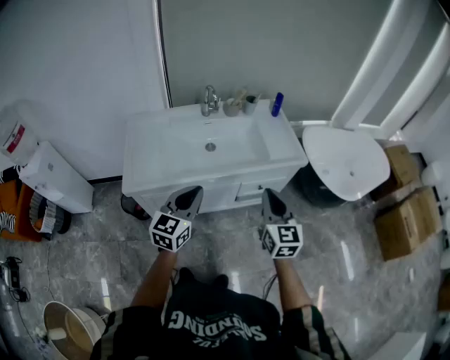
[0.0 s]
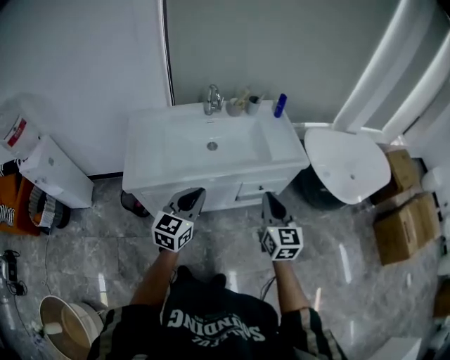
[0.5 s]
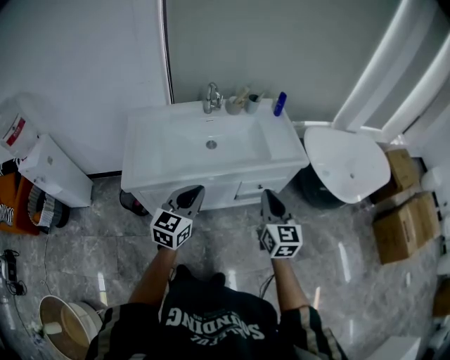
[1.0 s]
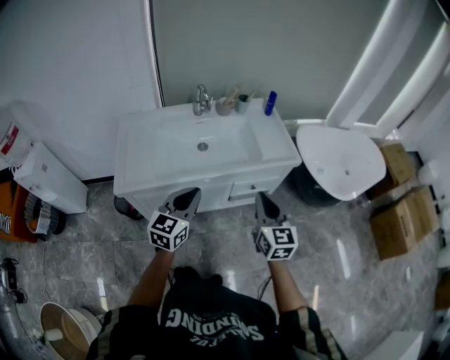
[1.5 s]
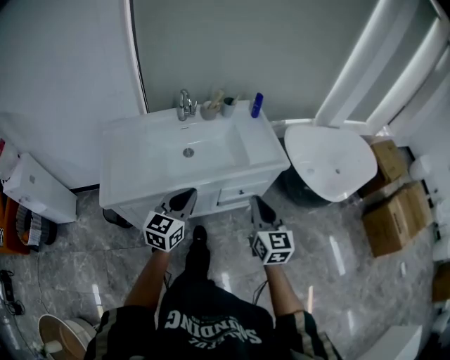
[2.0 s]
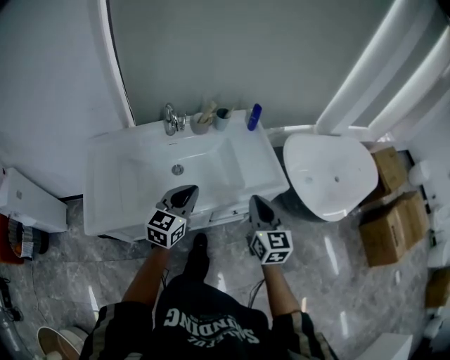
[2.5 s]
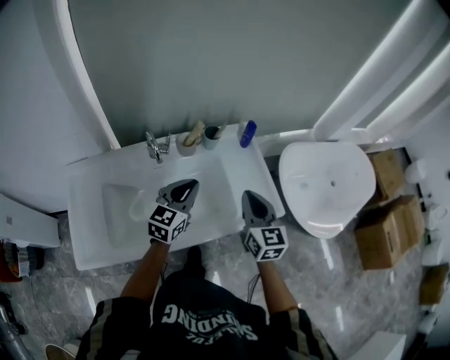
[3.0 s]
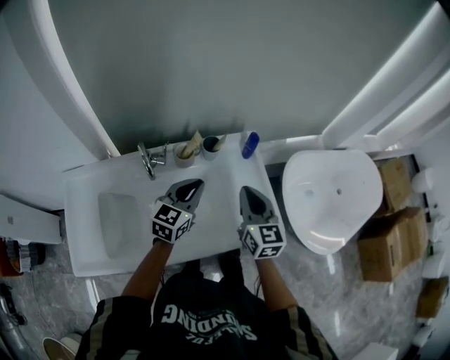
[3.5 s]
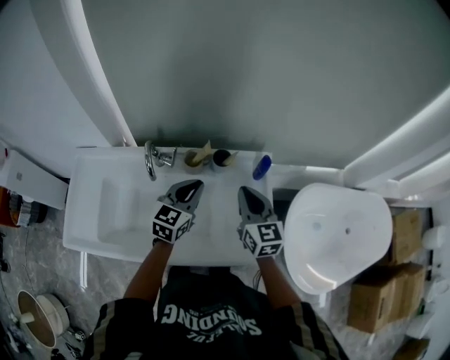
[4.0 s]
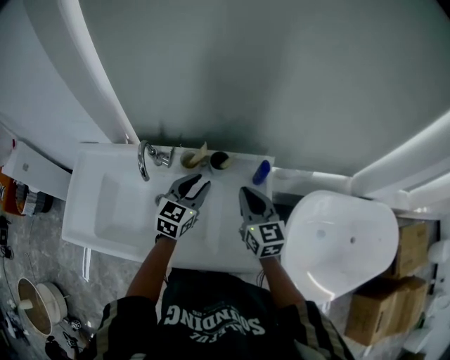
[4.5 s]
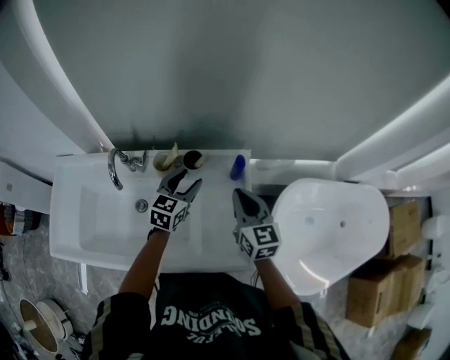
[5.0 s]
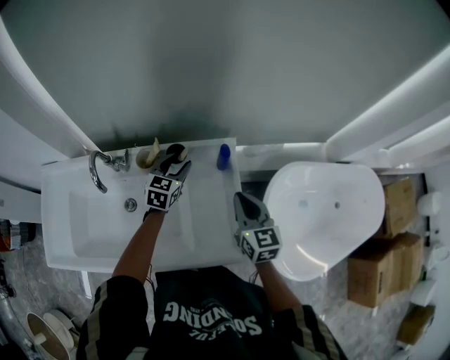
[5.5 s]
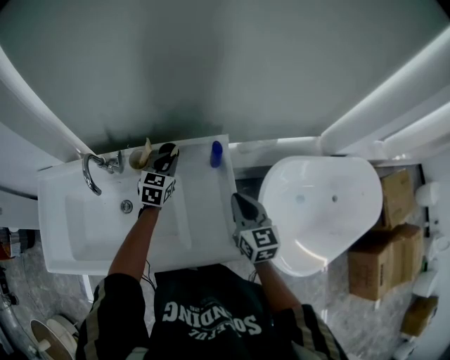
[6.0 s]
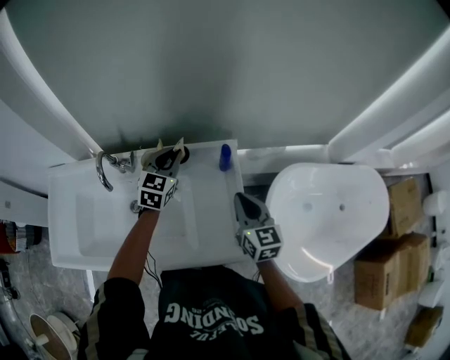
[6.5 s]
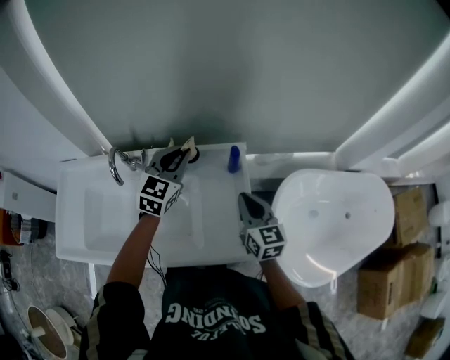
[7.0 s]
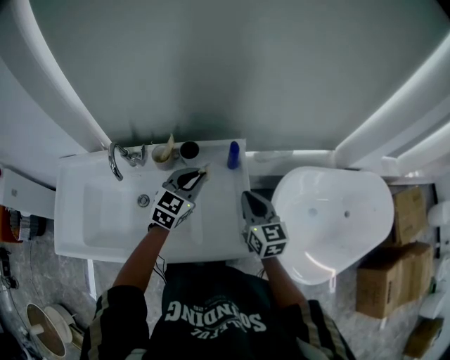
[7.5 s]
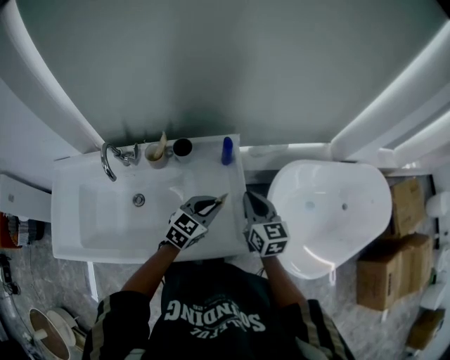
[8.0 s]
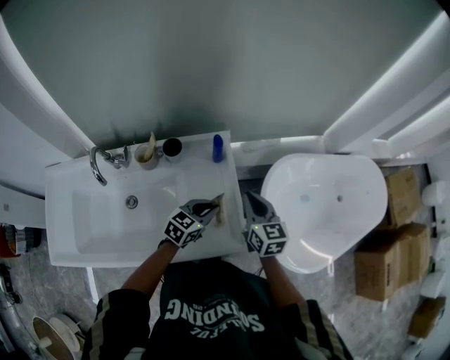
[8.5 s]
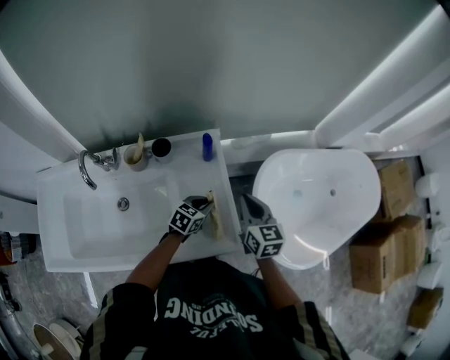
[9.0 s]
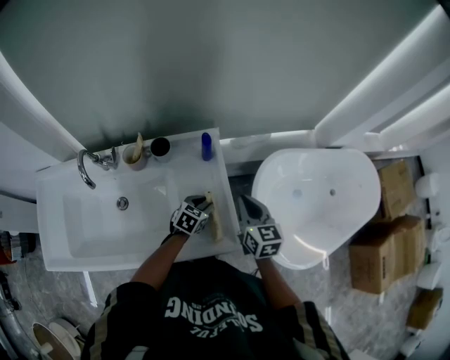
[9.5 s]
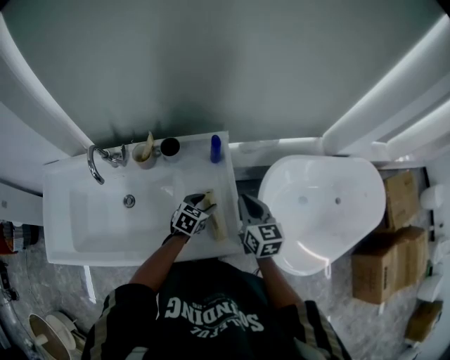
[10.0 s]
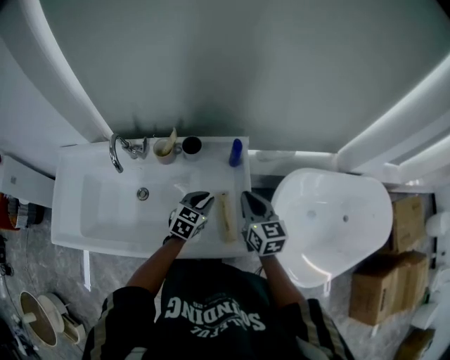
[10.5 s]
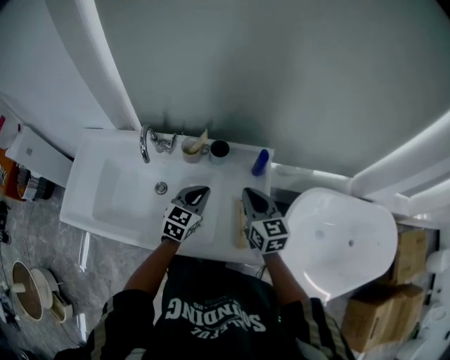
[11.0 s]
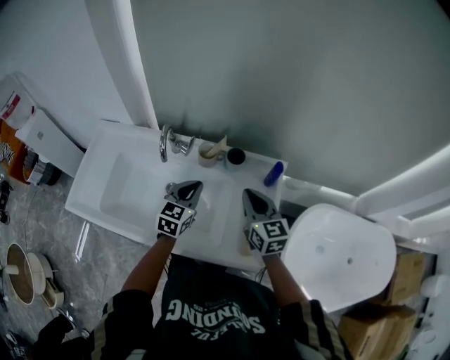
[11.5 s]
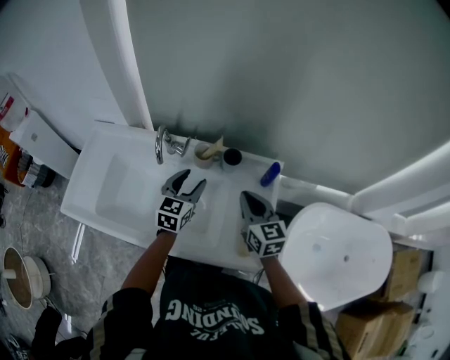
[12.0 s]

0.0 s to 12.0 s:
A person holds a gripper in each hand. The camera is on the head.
0.0 to 2.0 s: The right gripper shifts by approximately 5 cm. Meanwhile the left gripper goes about 10 cm forward and to the right.
2.0 to 4.0 s: Both grippers are carried forward, approximately 50 cm. The right gripper rotates approximately 20 degrees.
4.0 to 6.0 s: The right gripper is displaced to the right and downward by some 15 cm; the left gripper shifts approximately 20 cm forward, downward and to the right, and opens, then closes once more.
6.0 to 8.0 s: The left gripper travels backward and to the right by roughly 25 cm, and rotates some 30 degrees.
8.0 to 10.0 s: The left gripper heads downward, covering about 15 cm, swivels approximately 20 degrees, and opens its fingers.
10.0 to 12.0 s: The right gripper ends up about 20 cm from where it was, and rotates about 30 degrees. The left gripper ends up roughly 30 cm from where it was, changes its angle by some 40 degrees, and closes, then opens again.

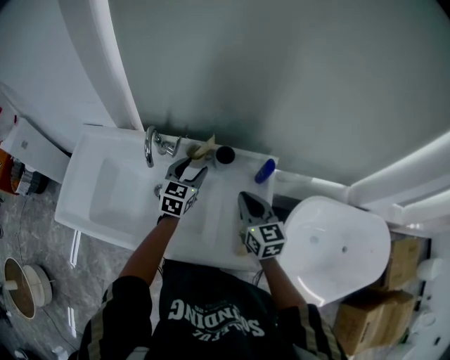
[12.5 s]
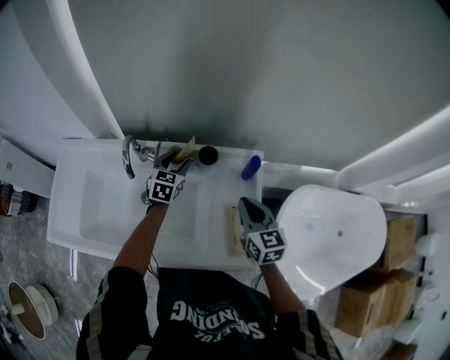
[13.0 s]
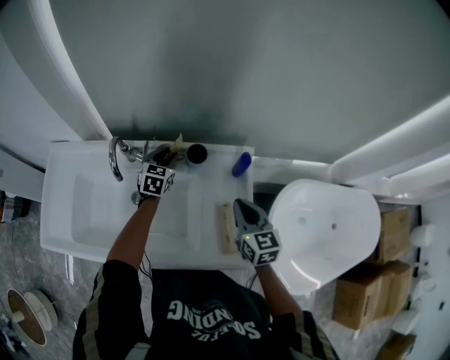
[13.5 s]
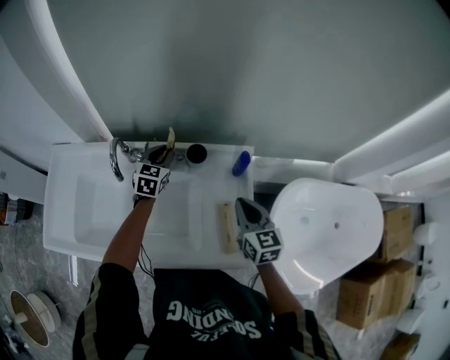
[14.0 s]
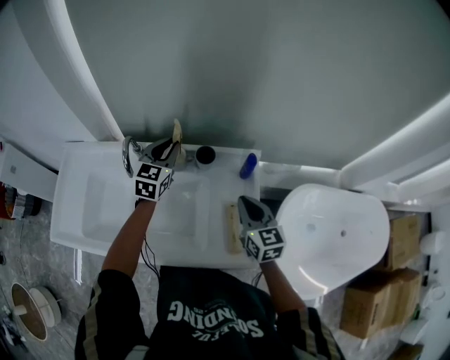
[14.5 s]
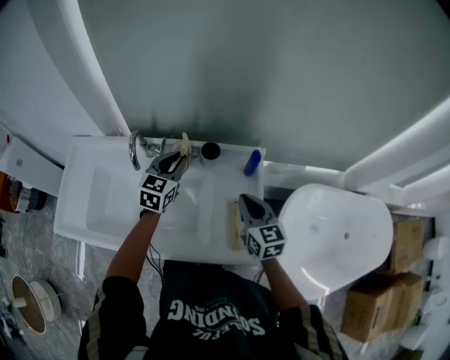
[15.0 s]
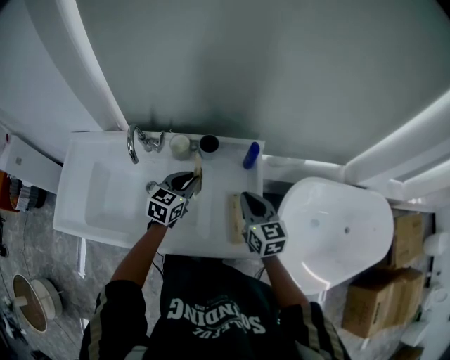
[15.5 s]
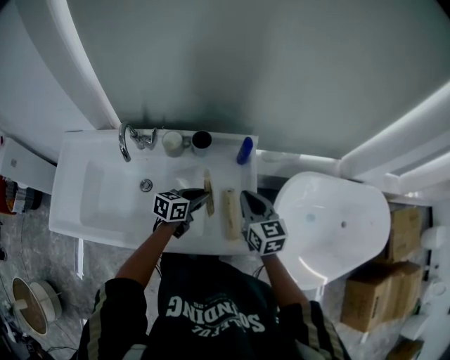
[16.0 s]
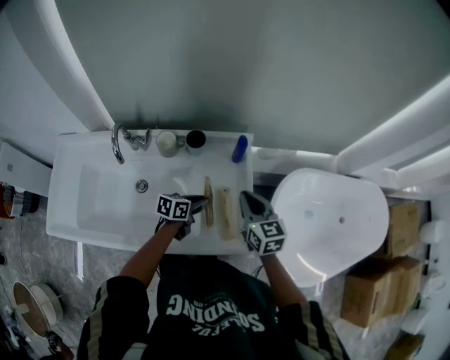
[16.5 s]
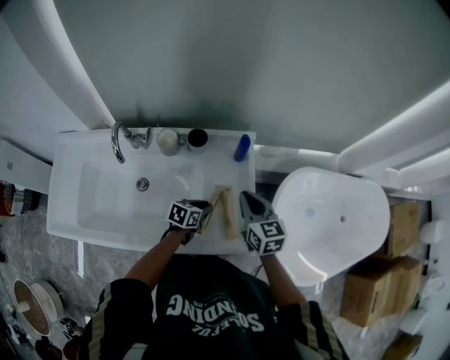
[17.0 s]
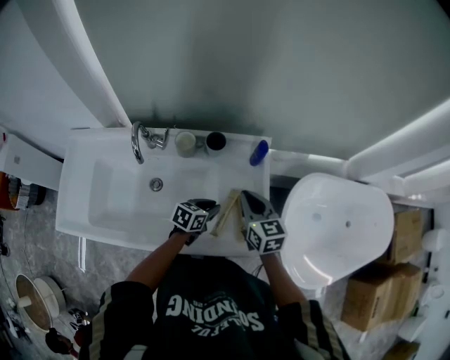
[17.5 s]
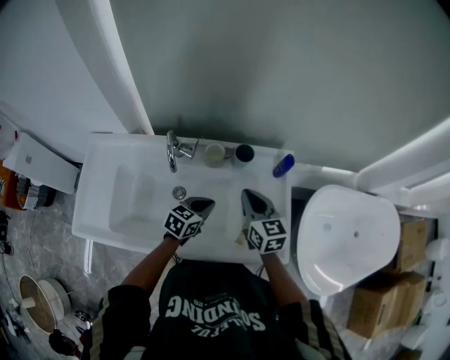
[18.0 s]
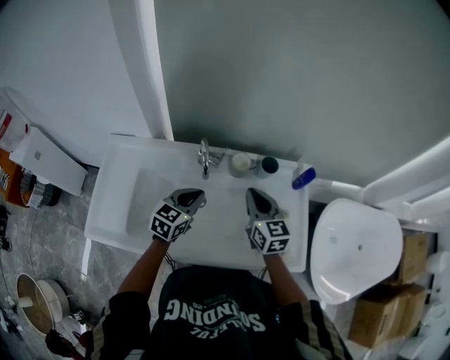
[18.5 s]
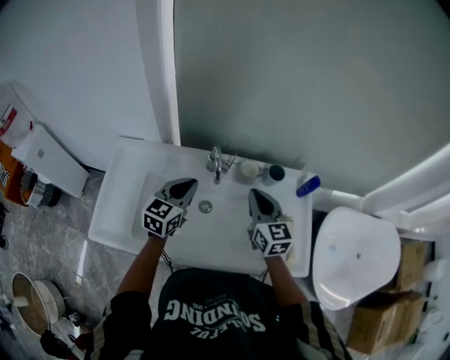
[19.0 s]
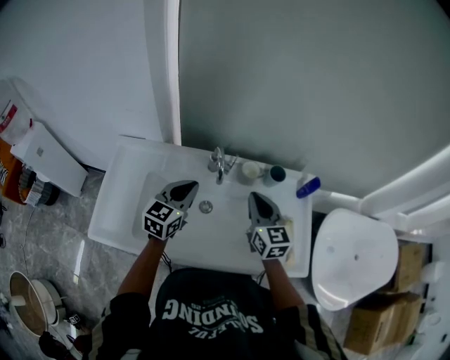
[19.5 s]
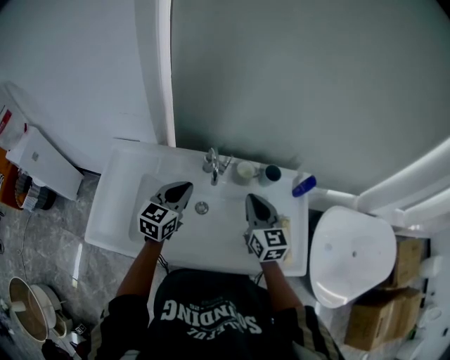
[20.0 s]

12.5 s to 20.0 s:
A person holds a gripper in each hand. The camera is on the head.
12.5 to 14.5 s: The right gripper moves to the right, some 5 cm, while the left gripper travels upward and forward by some 10 cm, and closes up.
14.5 to 16.5 s: The left gripper moves downward, to the right and backward, about 30 cm, and turns by roughly 60 degrees. The right gripper changes place by some 5 cm.
16.5 to 18.0 s: The left gripper shifts about 15 cm to the left and upward, and swivels about 20 degrees. Meanwhile the right gripper goes some 15 cm to the left.
18.0 to 20.0 s: The right gripper moves to the left, about 10 cm. Meanwhile the left gripper travels to the left and upward by about 25 cm, and rotates some 30 degrees.

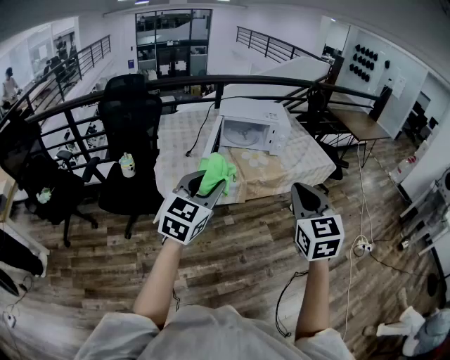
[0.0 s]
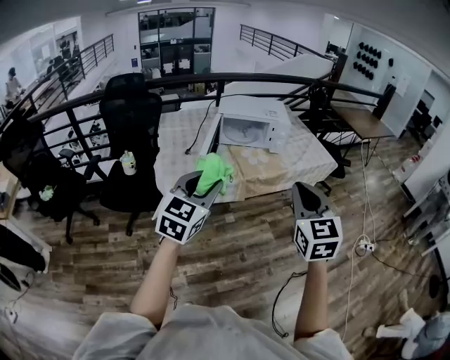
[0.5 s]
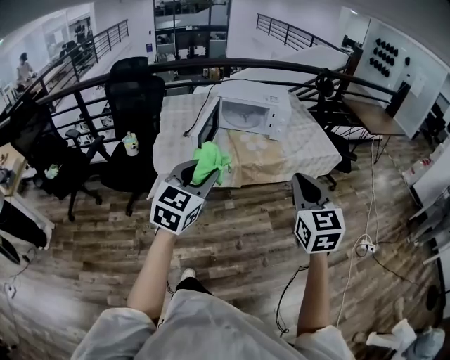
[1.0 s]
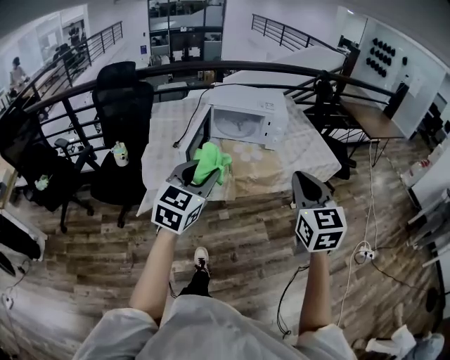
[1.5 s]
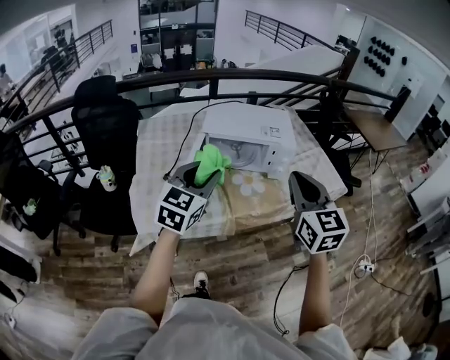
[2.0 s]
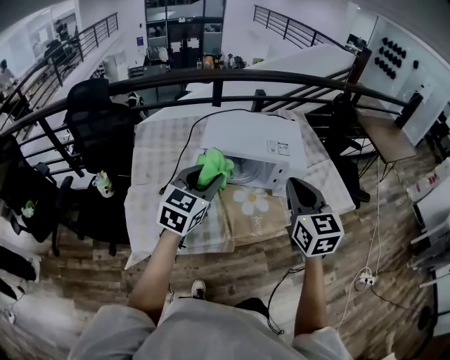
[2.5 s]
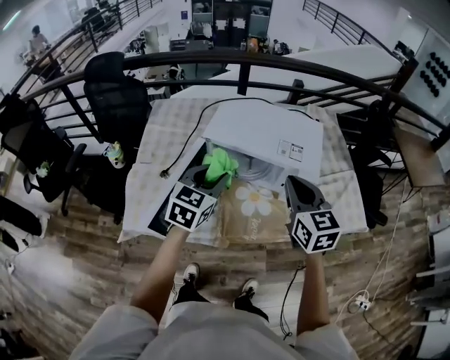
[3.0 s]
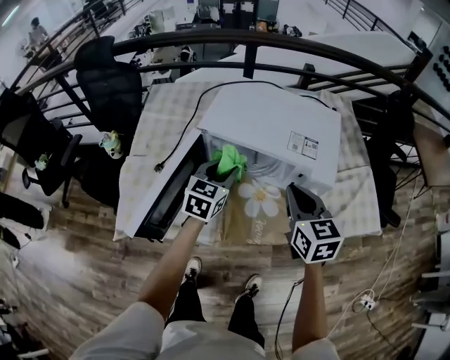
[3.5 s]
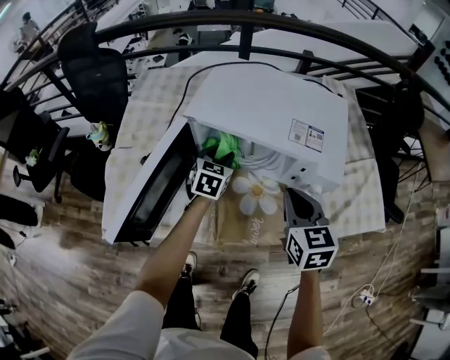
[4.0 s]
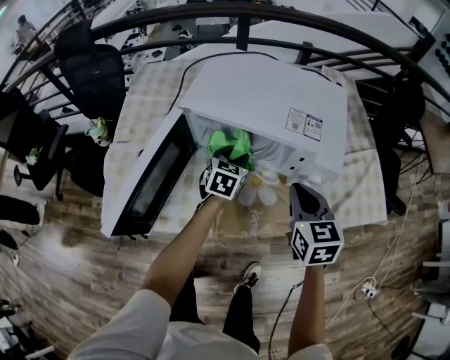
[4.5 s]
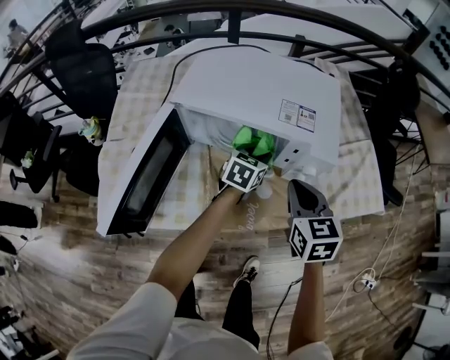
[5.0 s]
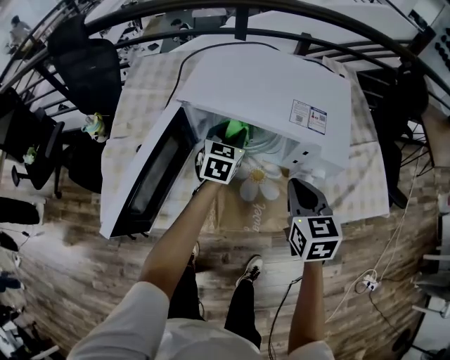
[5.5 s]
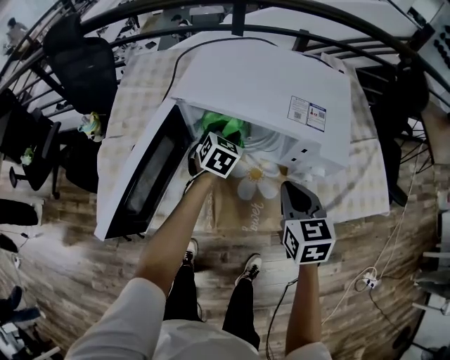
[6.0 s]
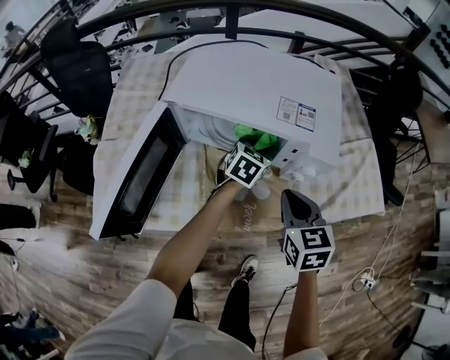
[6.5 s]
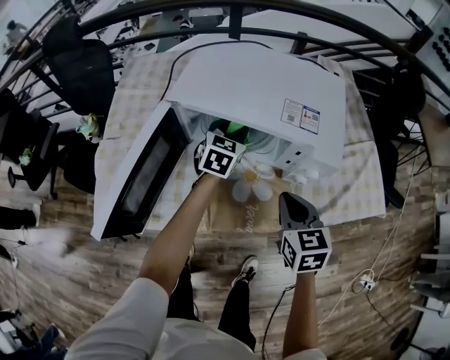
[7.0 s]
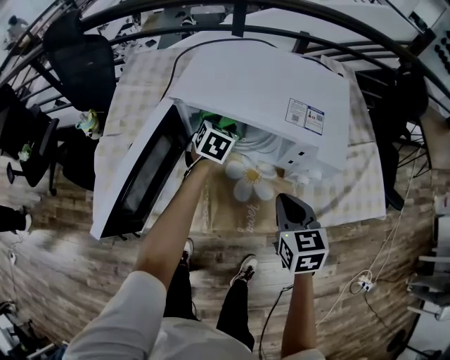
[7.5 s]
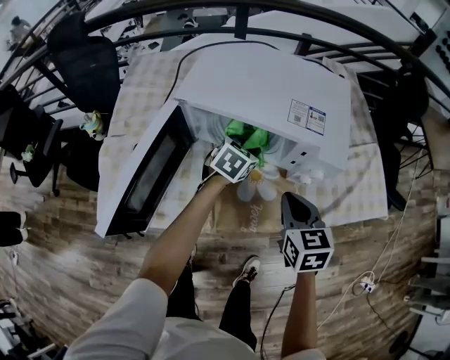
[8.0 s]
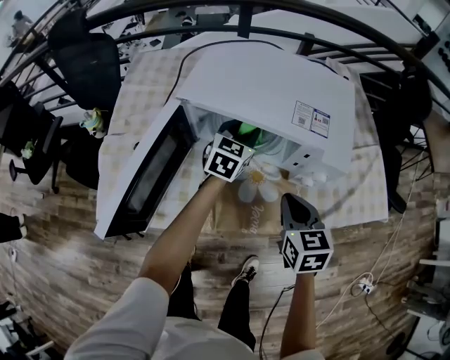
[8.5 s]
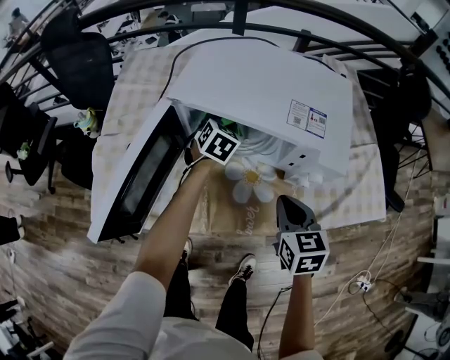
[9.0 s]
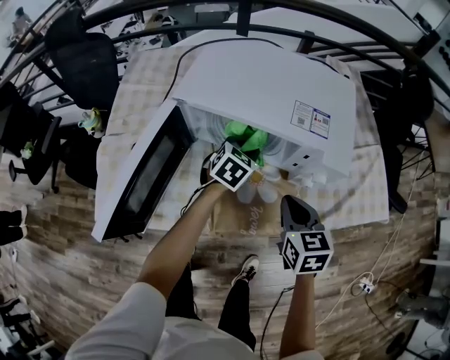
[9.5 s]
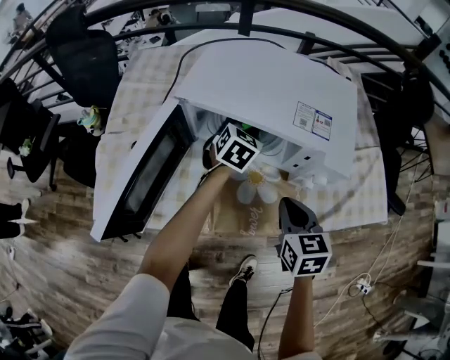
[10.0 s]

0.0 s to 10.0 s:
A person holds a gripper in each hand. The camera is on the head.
0.0 to 2.0 s: The two grippers go about 35 cm forward.
2.0 to 4.0 s: Both grippers travel together forward and downward, some 40 cm. The left gripper turns by roughly 30 degrees; the right gripper changes its angle by approximately 30 degrees.
4.0 to 6.0 s: The left gripper reaches some 15 cm to the right, then returns.
6.0 to 8.0 s: The left gripper swings left and right, roughly 15 cm each way, with 2 reversals.
8.0 to 10.0 s: The left gripper shifts about 5 cm forward.
